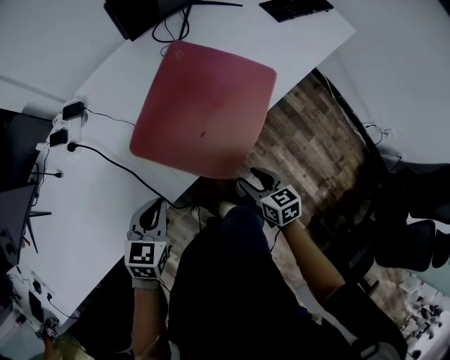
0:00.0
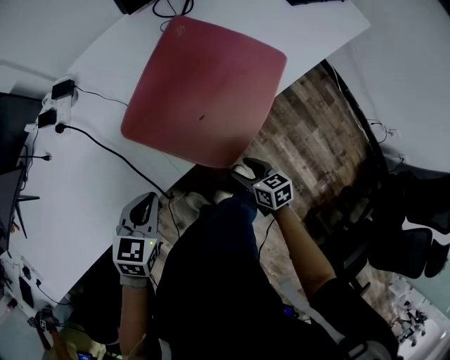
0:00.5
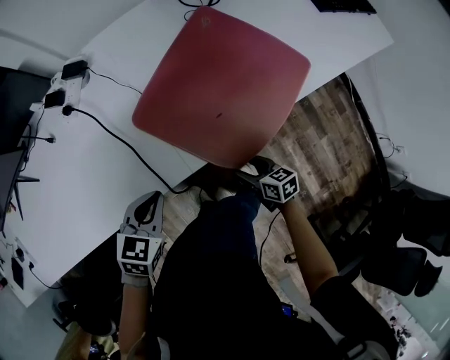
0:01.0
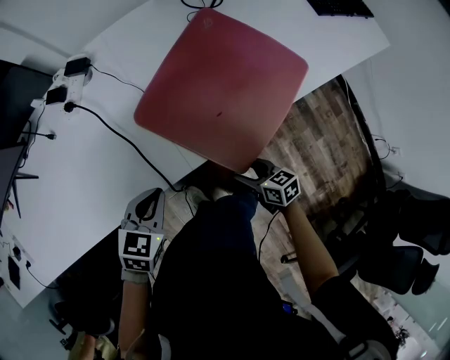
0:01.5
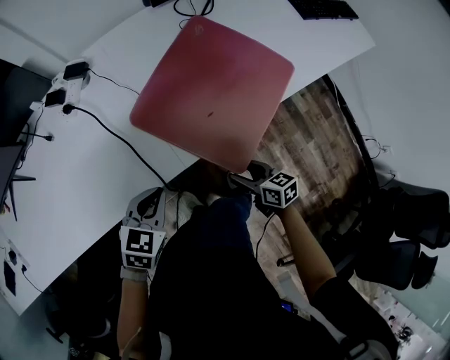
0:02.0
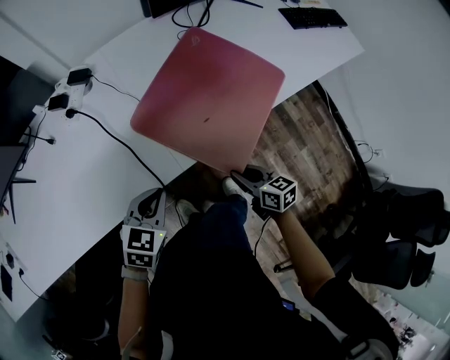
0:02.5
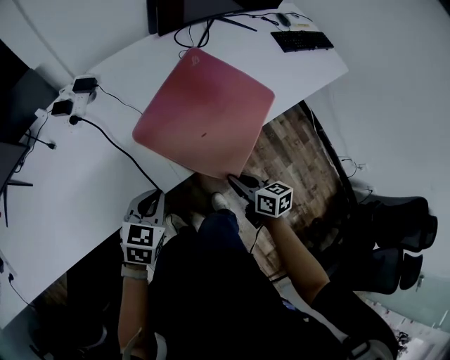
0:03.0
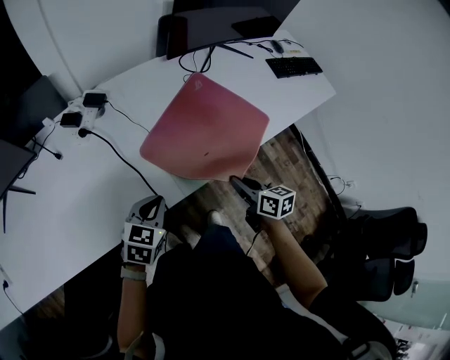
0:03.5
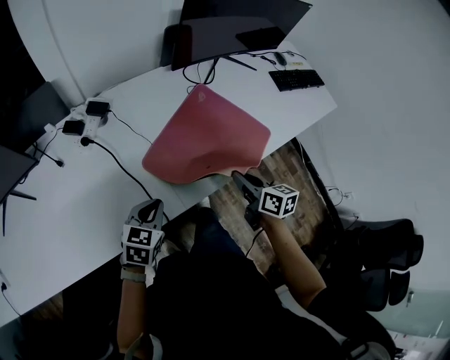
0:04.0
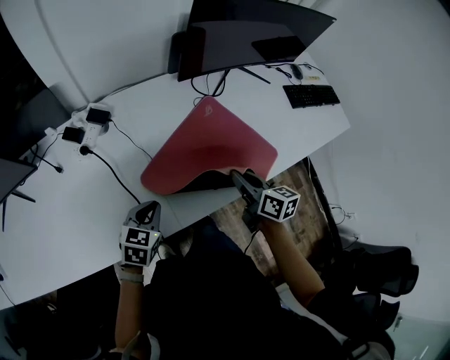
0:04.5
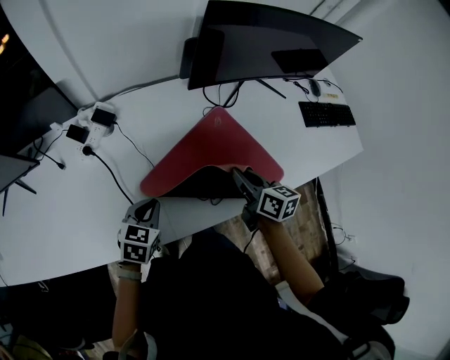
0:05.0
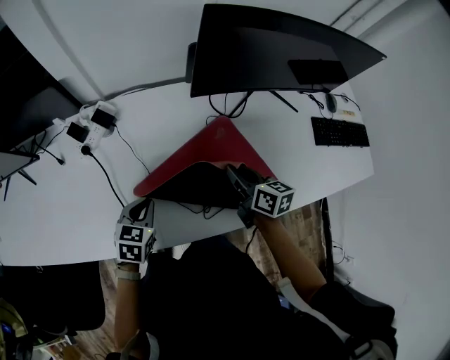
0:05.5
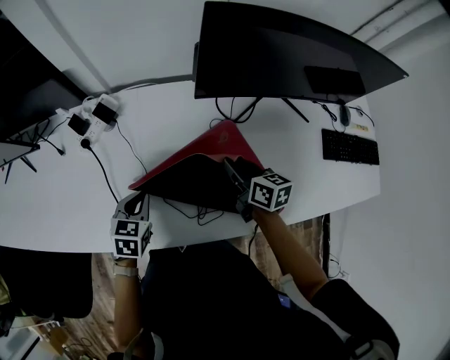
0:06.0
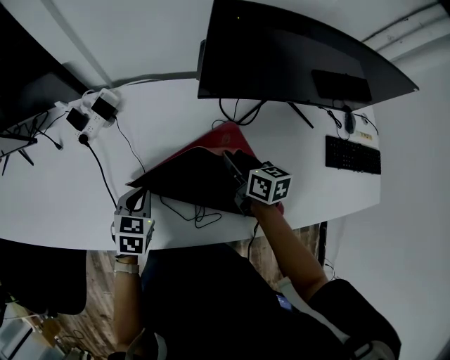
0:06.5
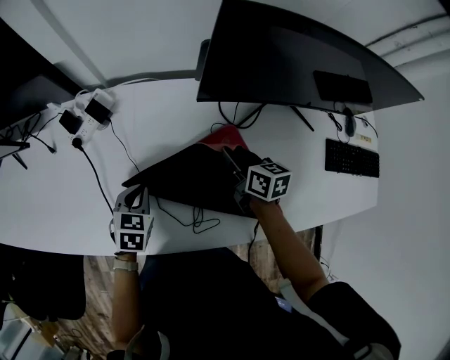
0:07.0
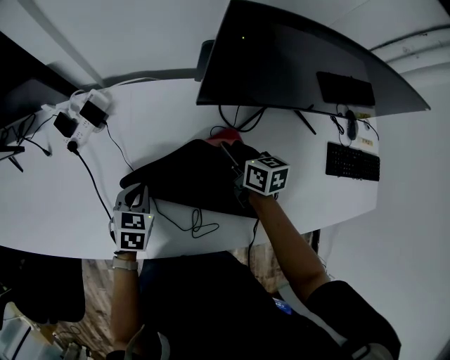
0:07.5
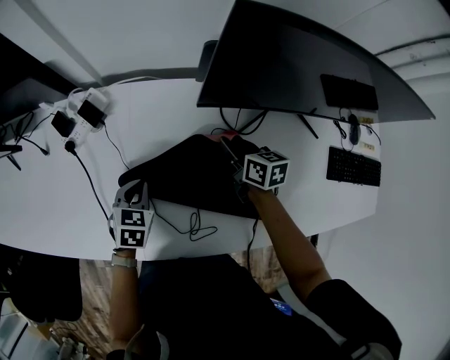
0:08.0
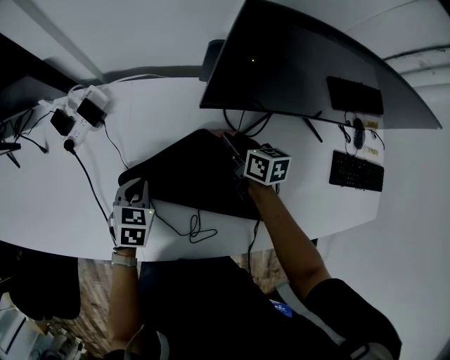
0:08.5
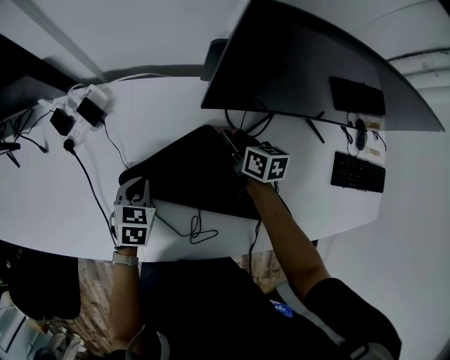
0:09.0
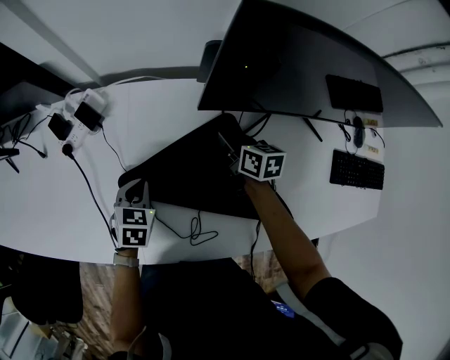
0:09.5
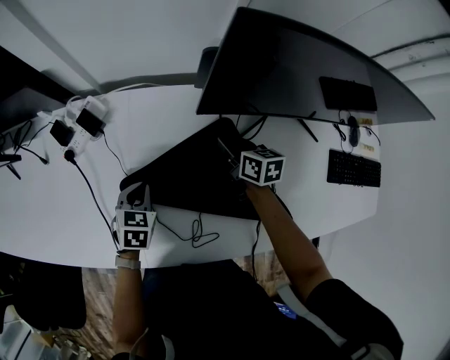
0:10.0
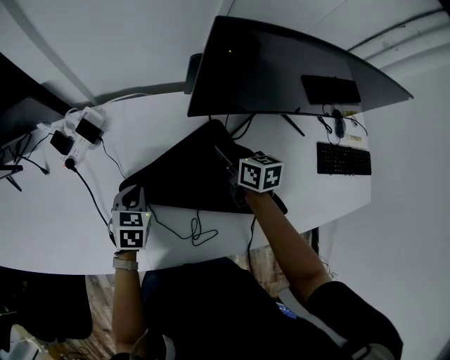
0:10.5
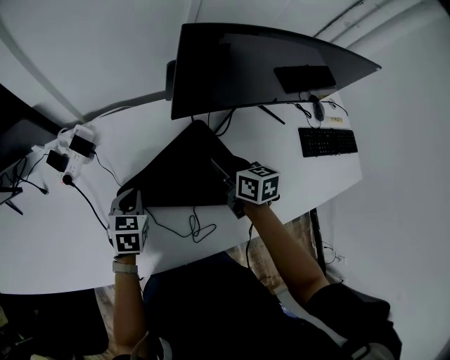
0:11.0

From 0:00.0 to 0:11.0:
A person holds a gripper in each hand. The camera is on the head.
From 0:02.0 to 0:03.5: The right gripper is displaced upward and forward by approximately 15 cm, and closes its fingers. Meanwhile the left gripper moves approximately 5 cm.
From 0:03.5 to 0:05.5: The left gripper shifts approximately 20 cm forward, and swivels approximately 30 degrees. The right gripper moves forward, some 30 cm.
From 0:05.5 to 0:07.5: The left gripper heads forward and downward, covering roughly 10 cm, while the right gripper heads forward and downward, covering about 15 cm.
From 0:07.5 to 0:09.0: The right gripper travels forward by approximately 5 cm.
From 0:09.0 to 0:11.0: The left gripper moves upward, about 5 cm. Meanwhile the right gripper goes roughly 15 cm backward and upward.

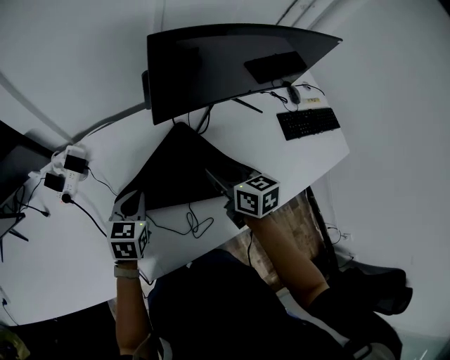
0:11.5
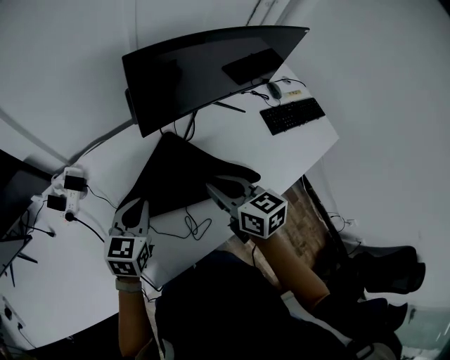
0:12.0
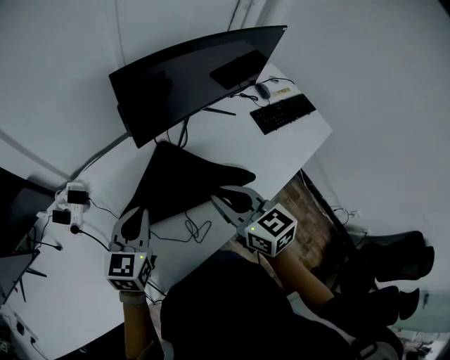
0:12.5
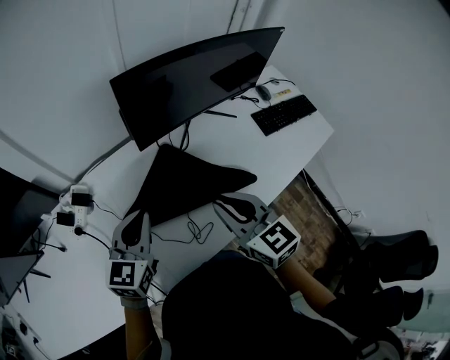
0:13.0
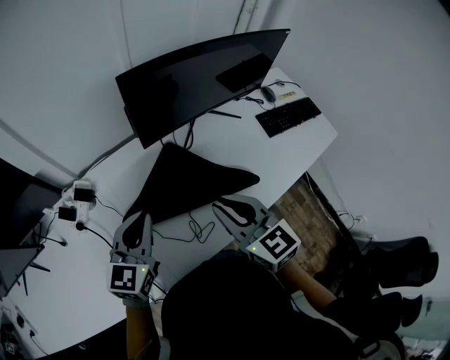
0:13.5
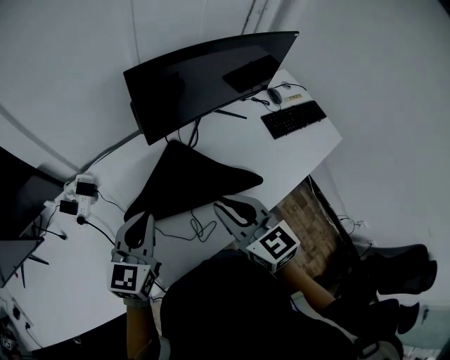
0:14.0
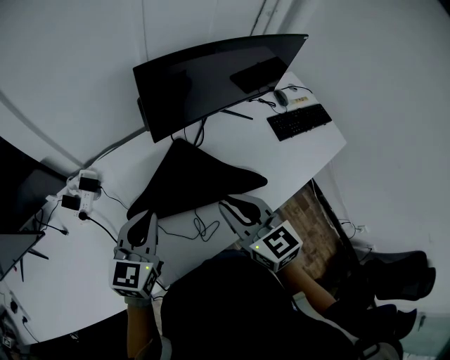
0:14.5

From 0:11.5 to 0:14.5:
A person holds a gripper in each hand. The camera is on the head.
From 0:11.5 to 0:13.0: The right gripper shifts about 20 cm upward and backward, and changes its angle by approximately 20 degrees. The left gripper heads upward, covering roughly 15 cm, and changes its angle by roughly 30 degrees.
From 0:13.0 to 0:14.5: The grippers make only small movements.

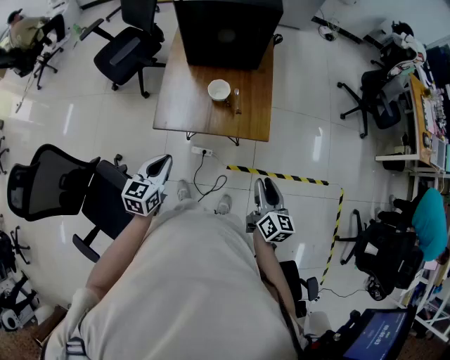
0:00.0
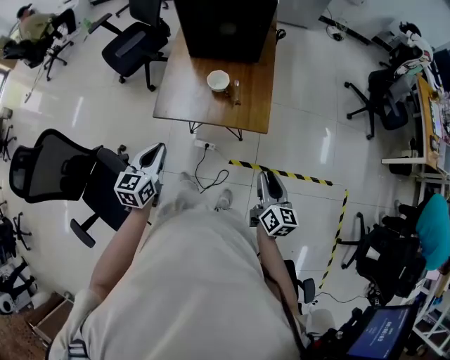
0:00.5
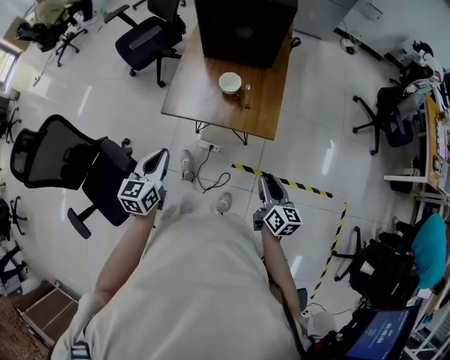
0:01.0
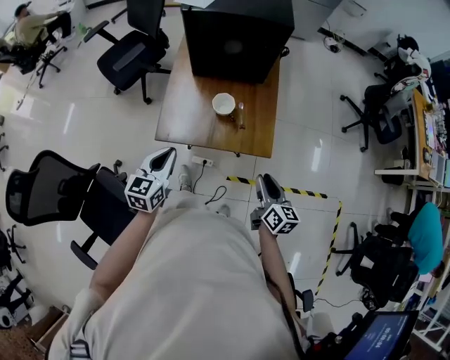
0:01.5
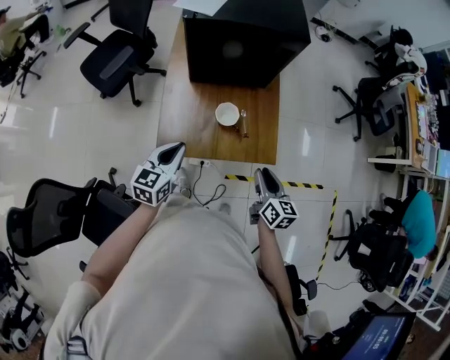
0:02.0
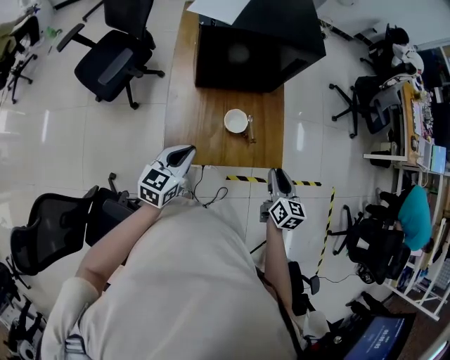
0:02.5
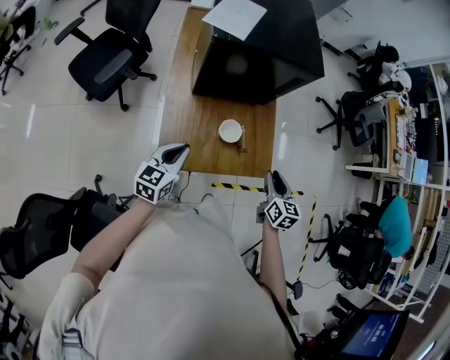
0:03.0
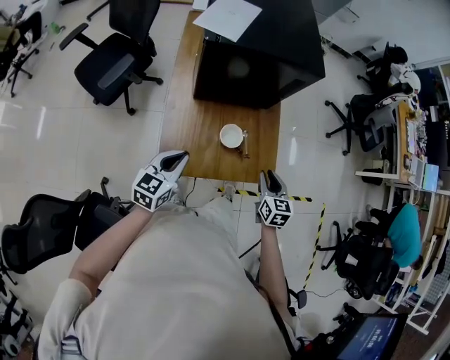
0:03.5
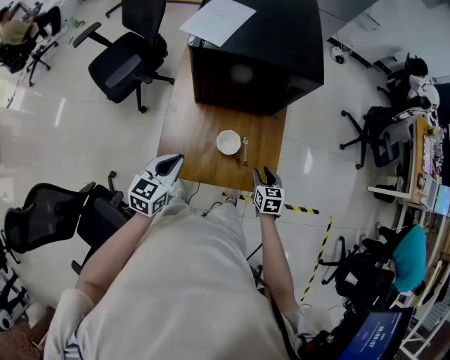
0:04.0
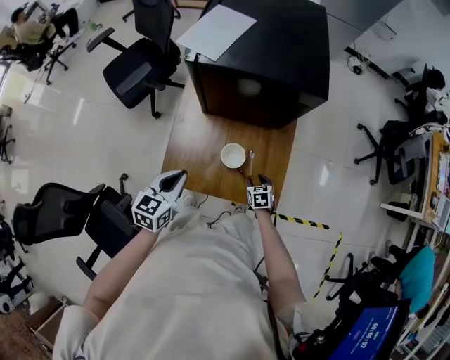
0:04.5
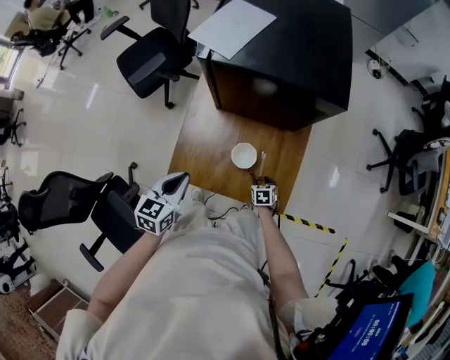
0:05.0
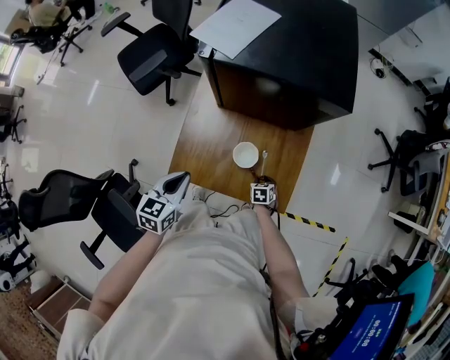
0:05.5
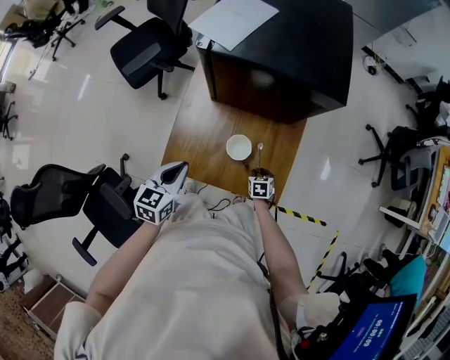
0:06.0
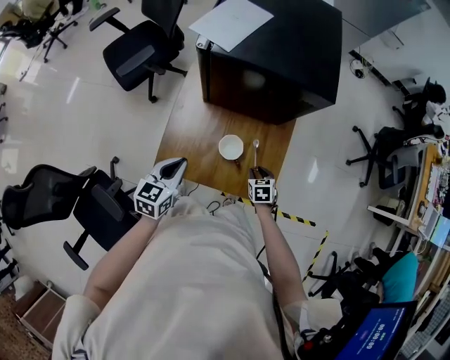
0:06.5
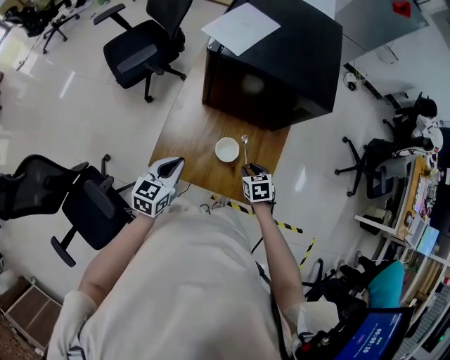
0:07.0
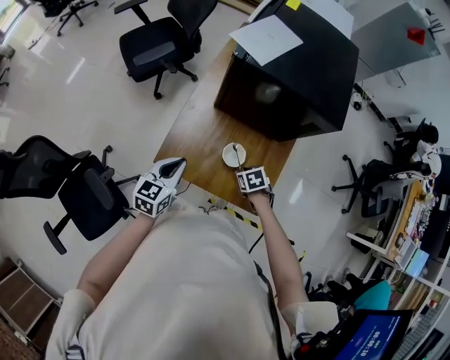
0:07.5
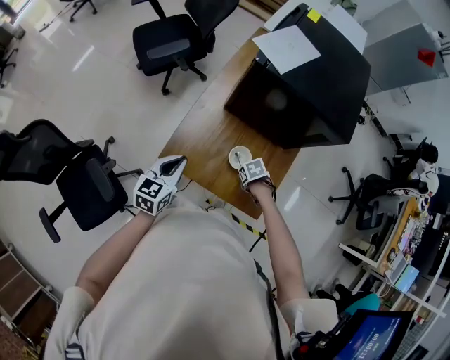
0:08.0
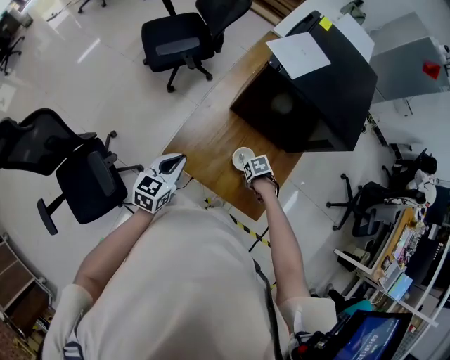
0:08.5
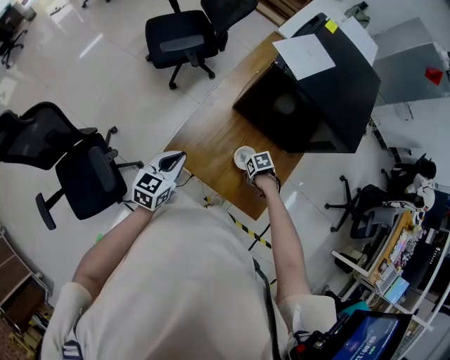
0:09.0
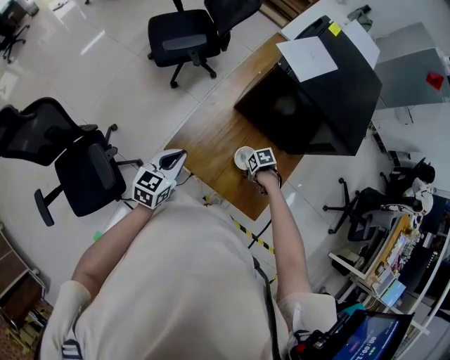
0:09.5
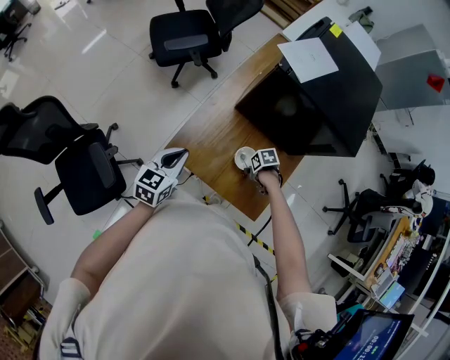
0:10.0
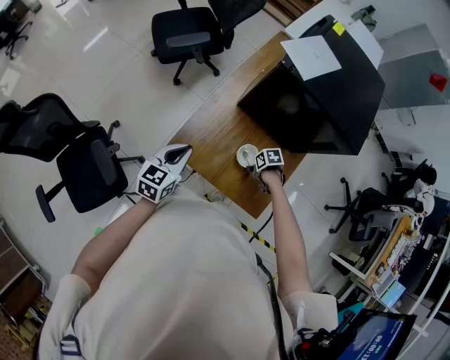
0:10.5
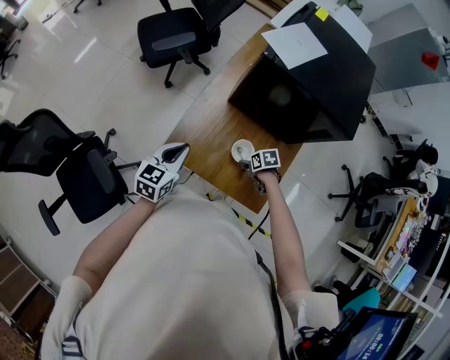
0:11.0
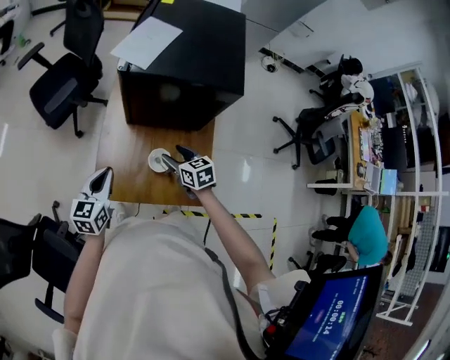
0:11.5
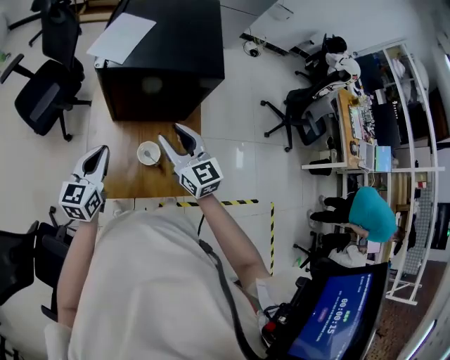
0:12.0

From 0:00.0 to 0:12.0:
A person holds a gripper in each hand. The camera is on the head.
From 0:00.0 to 0:02.0: The right gripper shifts about 15 cm forward and to the left, while the left gripper goes roughly 15 cm forward.
From 0:02.0 to 0:04.0: The left gripper is displaced forward by about 5 cm, while the right gripper travels forward and downward by about 20 cm, and turns by about 30 degrees.
From 0:04.0 to 0:06.0: The right gripper moves downward, approximately 15 cm, and rotates some 20 degrees.
From 0:06.0 to 0:08.0: The right gripper is displaced upward by about 10 cm, and changes its angle by about 40 degrees.
From 0:08.0 to 0:10.0: The grippers stay close to where they were, moving slightly.
From 0:10.0 to 0:12.0: The left gripper changes place by about 15 cm, and turns by about 20 degrees. The right gripper shifts approximately 35 cm upward, and tips its fingers upward by some 60 degrees.

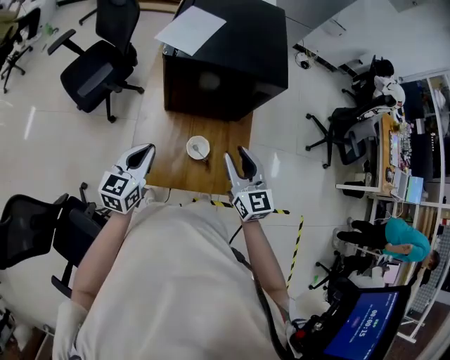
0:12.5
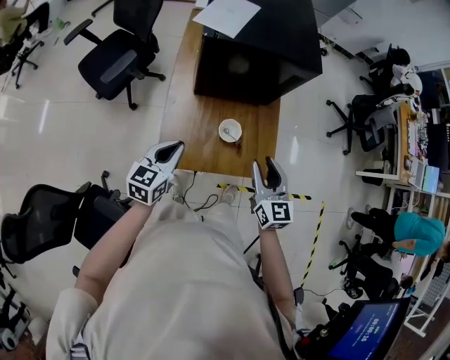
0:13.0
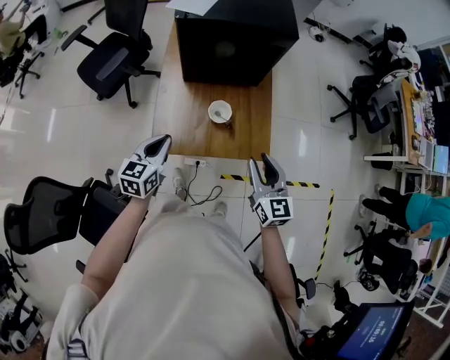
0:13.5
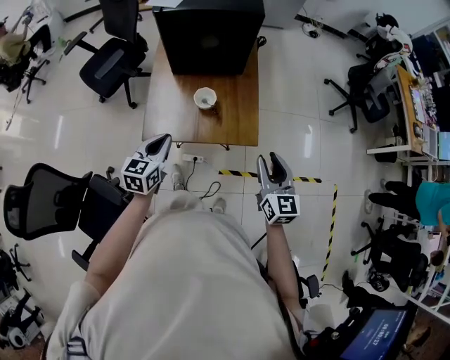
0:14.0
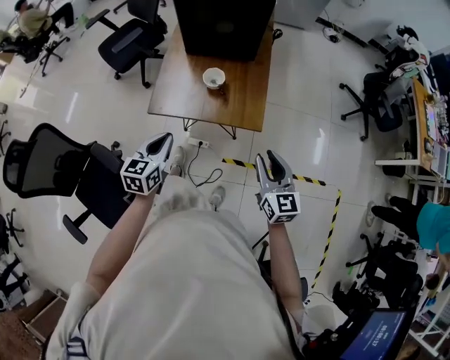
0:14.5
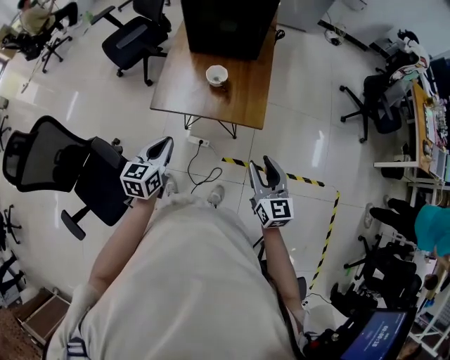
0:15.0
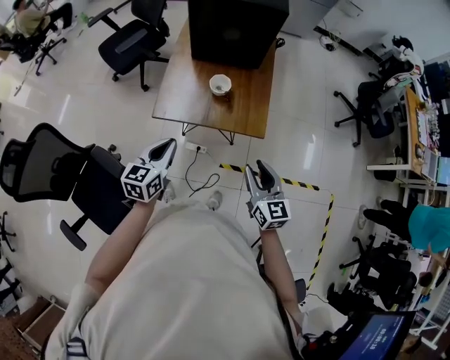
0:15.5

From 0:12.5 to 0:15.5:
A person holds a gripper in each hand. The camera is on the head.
From 0:12.5 to 0:14.0: The right gripper shifts some 25 cm backward and to the right. Meanwhile the left gripper travels backward and to the right by roughly 20 cm.
From 0:14.0 to 0:15.5: The right gripper goes roughly 10 cm backward and to the left; the left gripper travels backward by some 10 cm.
